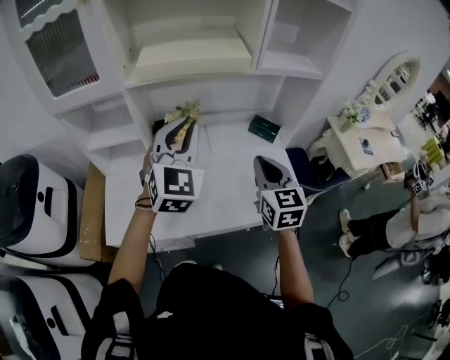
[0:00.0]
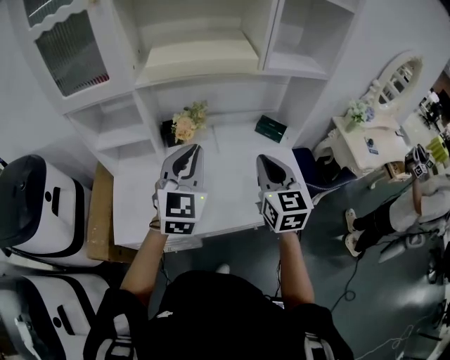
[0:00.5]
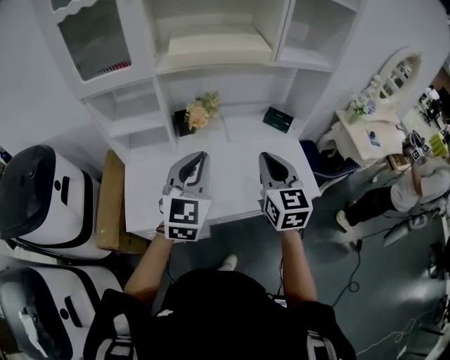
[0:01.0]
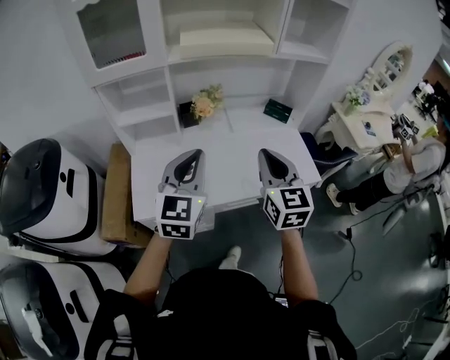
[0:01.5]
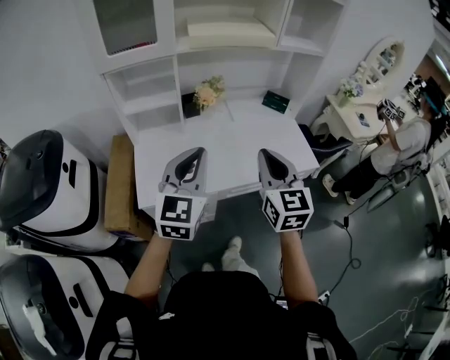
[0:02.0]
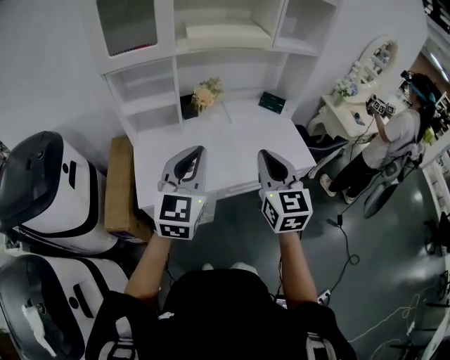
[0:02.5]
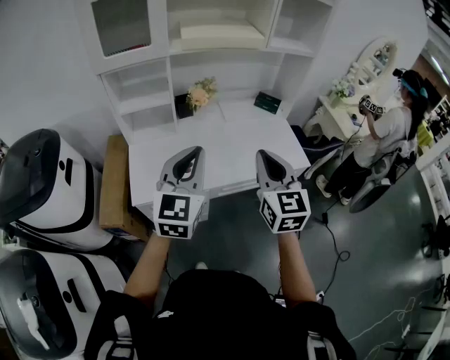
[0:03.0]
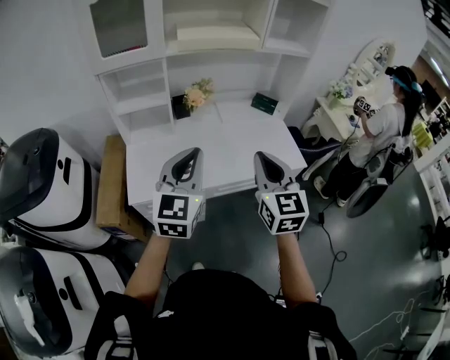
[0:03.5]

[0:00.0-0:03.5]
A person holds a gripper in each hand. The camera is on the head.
0:00.0 to 0:02.0: Both grippers travel together backward and to the left, about 30 cm. The left gripper turns by approximately 20 degrees.
0:02.0 to 0:03.5: The left gripper changes place by approximately 5 cm, while the right gripper moves some 5 cm.

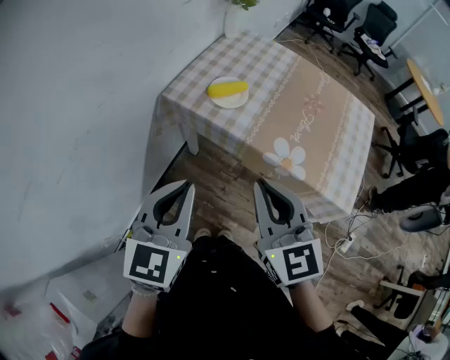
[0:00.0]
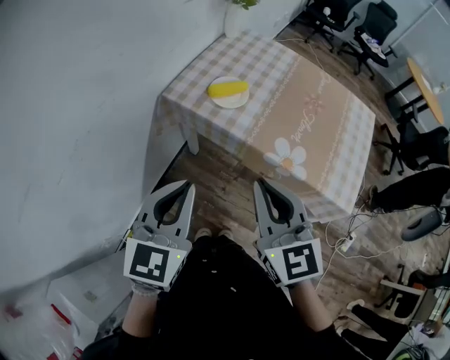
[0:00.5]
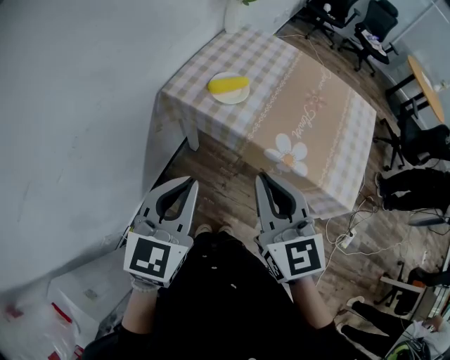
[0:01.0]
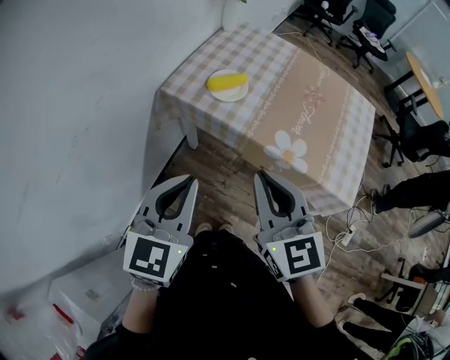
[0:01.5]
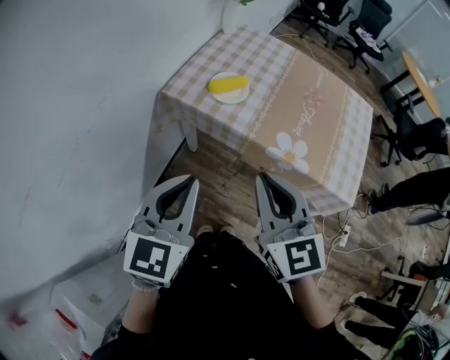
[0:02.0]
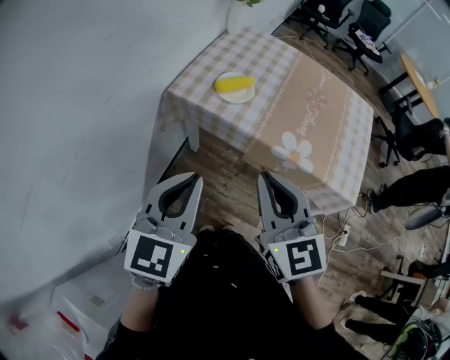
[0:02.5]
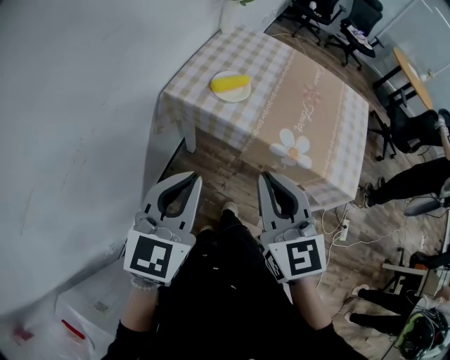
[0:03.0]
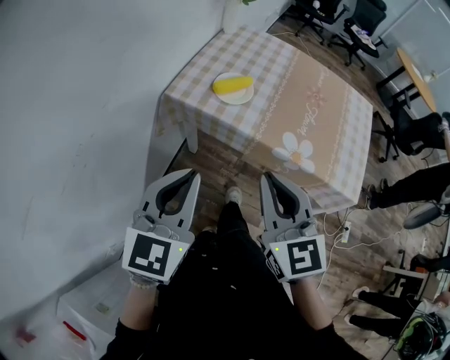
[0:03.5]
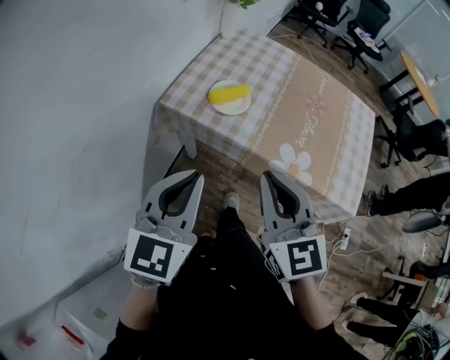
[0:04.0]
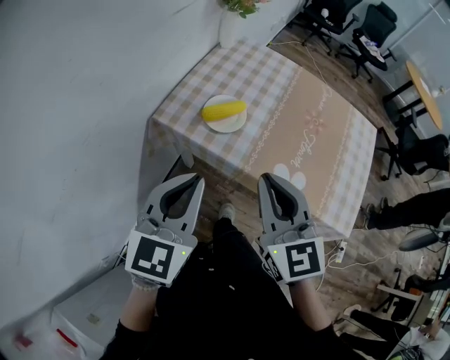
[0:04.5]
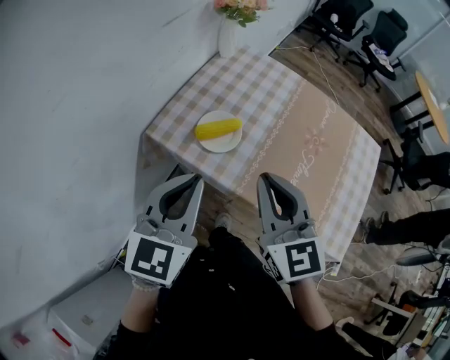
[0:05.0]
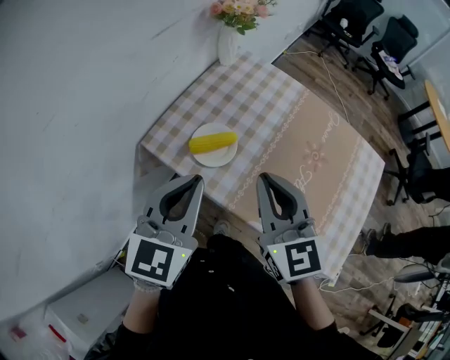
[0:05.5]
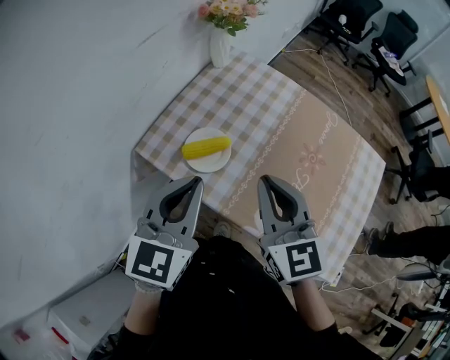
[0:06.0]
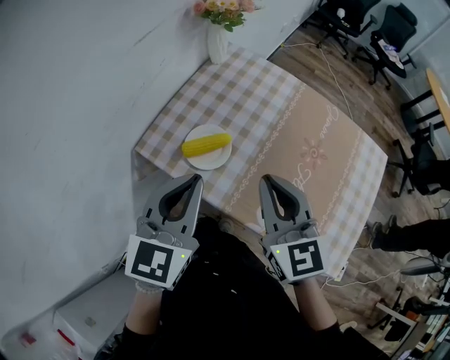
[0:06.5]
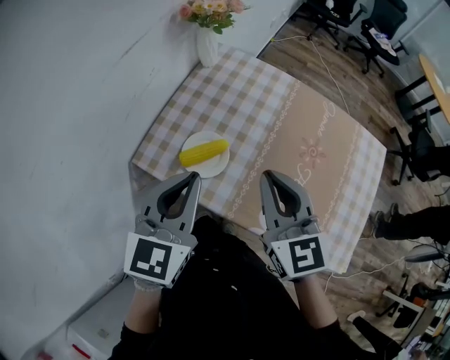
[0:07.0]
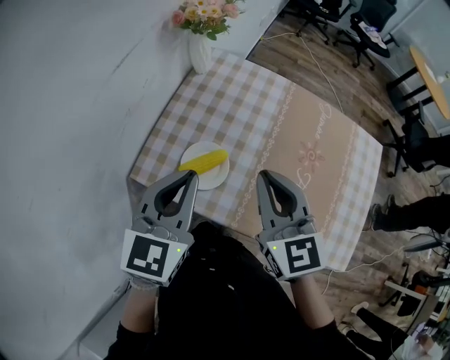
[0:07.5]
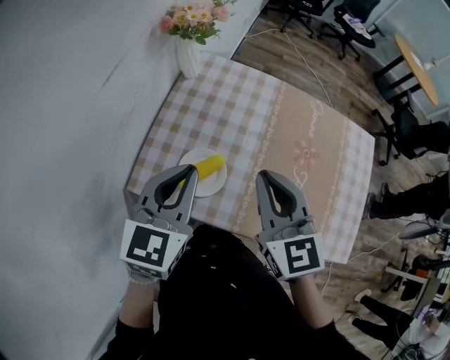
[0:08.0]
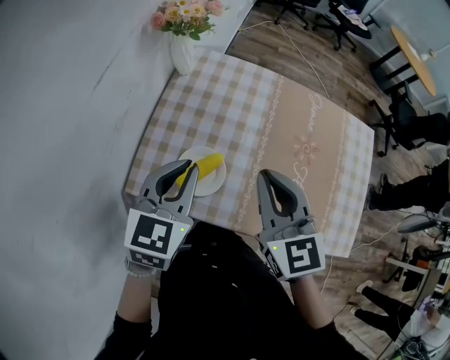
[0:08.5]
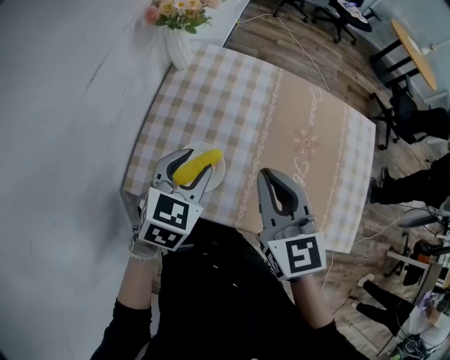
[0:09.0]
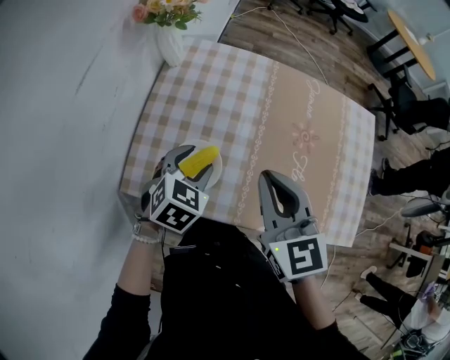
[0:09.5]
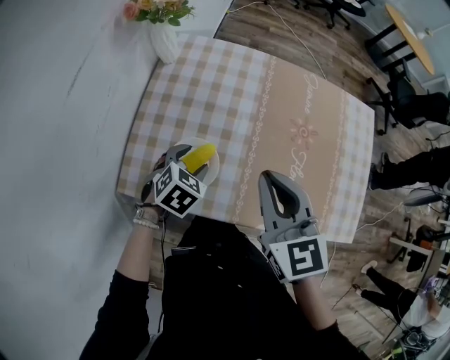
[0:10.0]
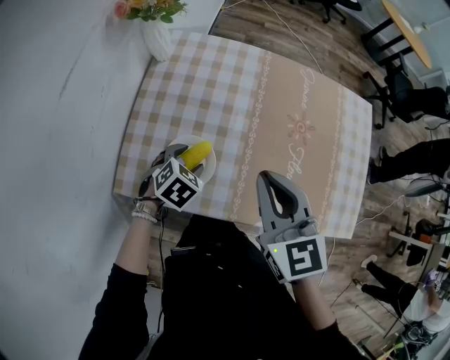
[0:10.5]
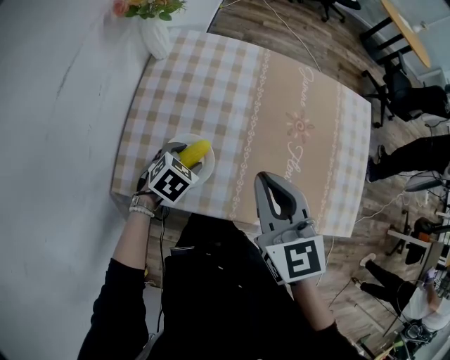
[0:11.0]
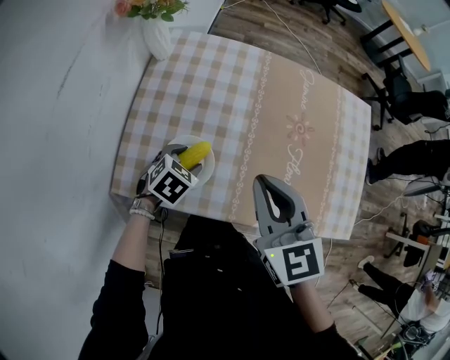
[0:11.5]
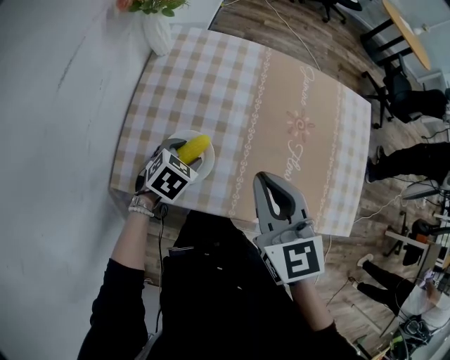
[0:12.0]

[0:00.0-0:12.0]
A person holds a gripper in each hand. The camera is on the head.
0:00.0 to 0:02.0: The grippers make only small movements.
0:02.0 to 0:04.0: Both grippers travel together forward, some 5 cm.
0:04.0 to 0:06.0: Both grippers travel together forward and to the right, roughly 25 cm.
0:06.0 to 0:08.0: The left gripper travels forward by about 10 cm; the right gripper shifts roughly 5 cm forward.
0:08.0 to 0:10.0: The left gripper is displaced downward by some 25 cm, tilts its fingers some 40 degrees downward, and opens up.
0:10.0 to 0:12.0: There are only small adjustments of the grippers.

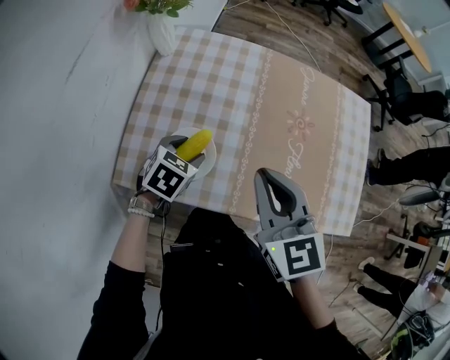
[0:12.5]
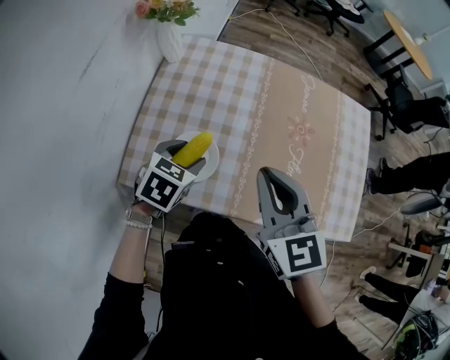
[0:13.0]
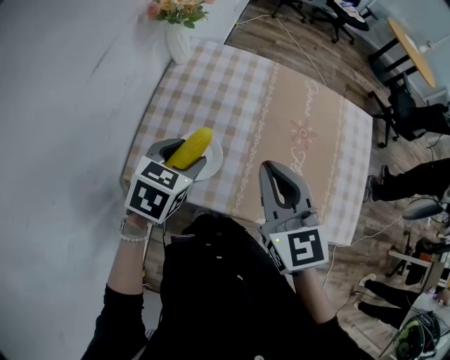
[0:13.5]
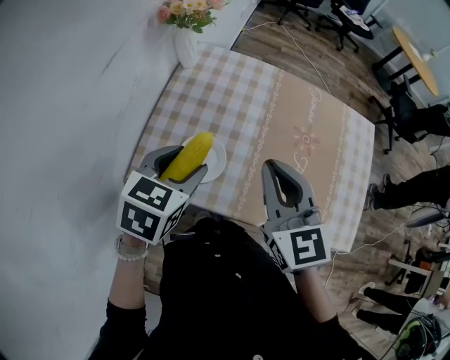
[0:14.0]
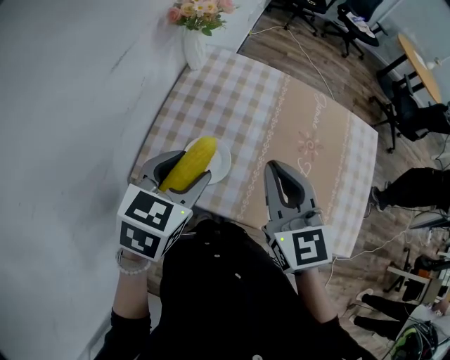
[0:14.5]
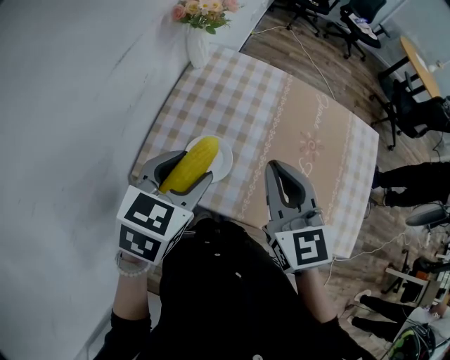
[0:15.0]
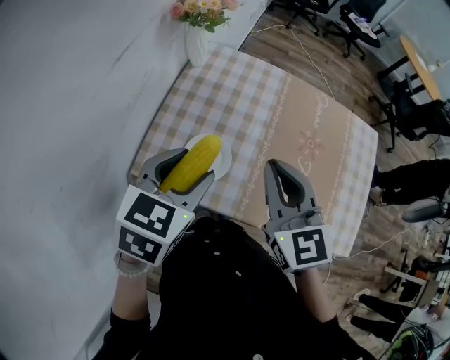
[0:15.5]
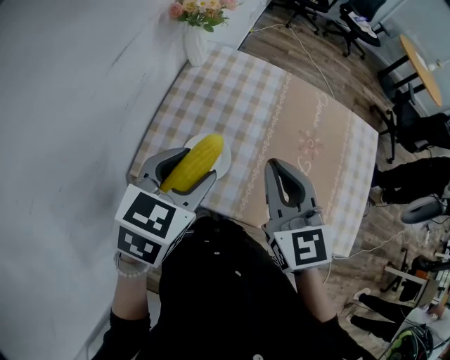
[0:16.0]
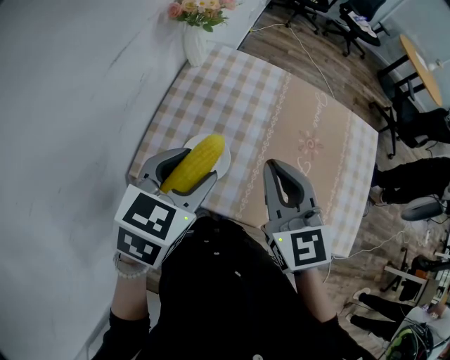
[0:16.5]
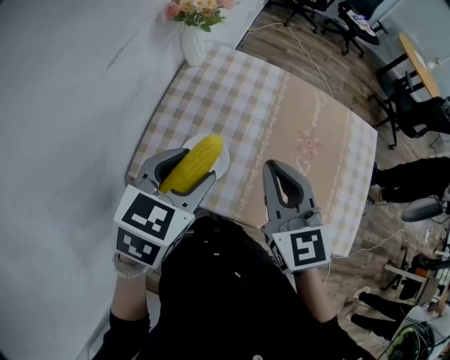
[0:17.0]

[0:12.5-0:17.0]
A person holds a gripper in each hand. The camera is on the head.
0:12.5 to 0:14.5: The left gripper shifts about 20 cm upward, and changes its angle by roughly 20 degrees.
0:14.5 to 0:17.0: The grippers move only a little.

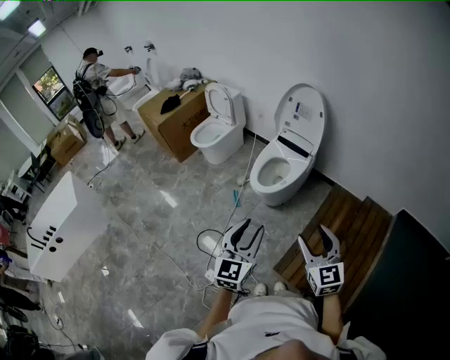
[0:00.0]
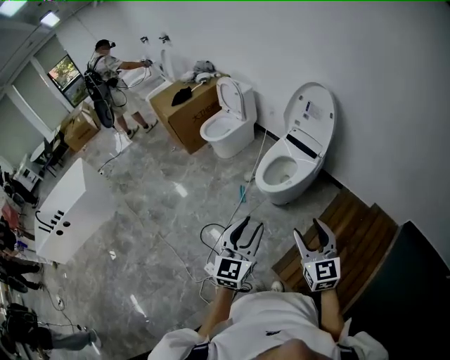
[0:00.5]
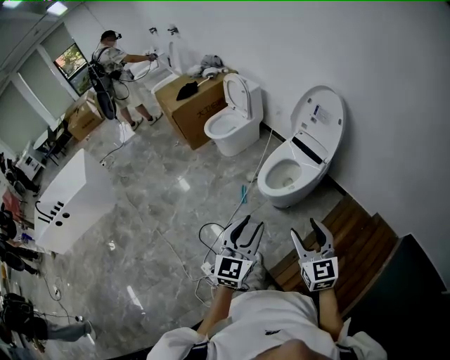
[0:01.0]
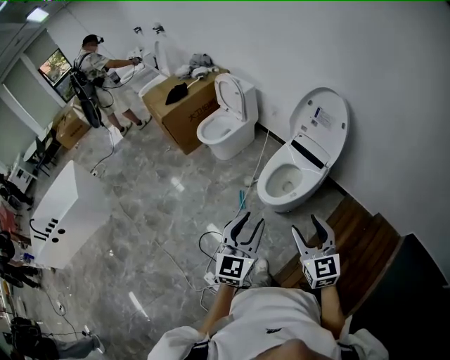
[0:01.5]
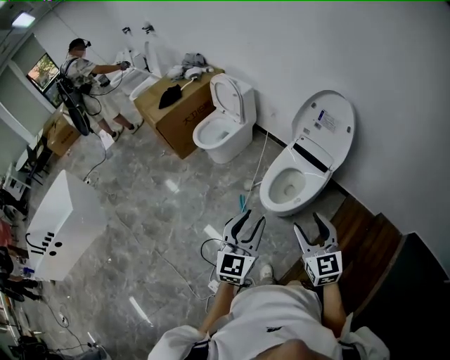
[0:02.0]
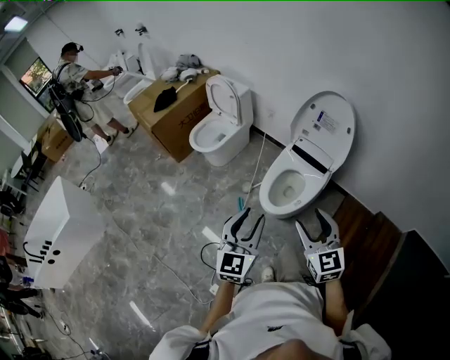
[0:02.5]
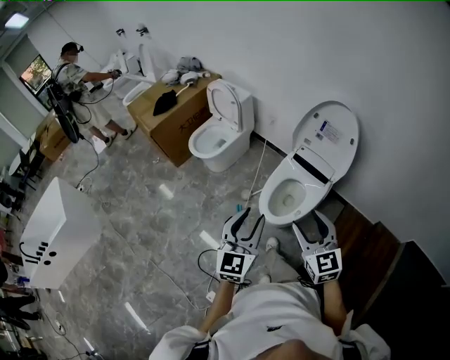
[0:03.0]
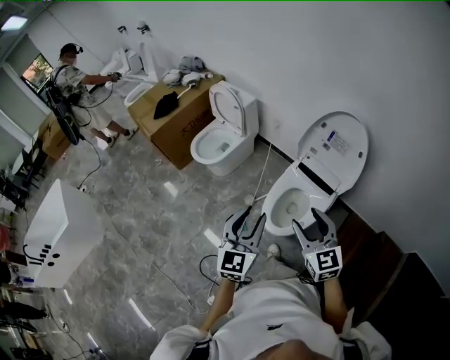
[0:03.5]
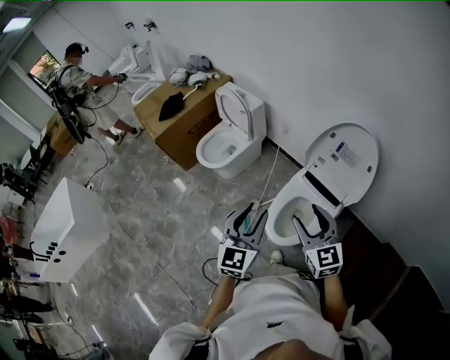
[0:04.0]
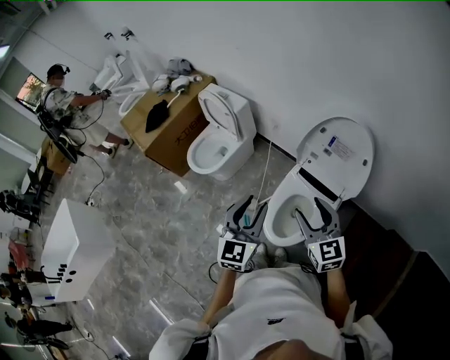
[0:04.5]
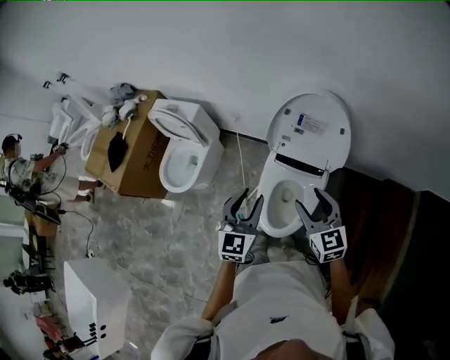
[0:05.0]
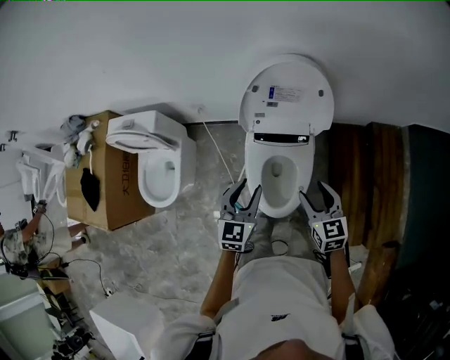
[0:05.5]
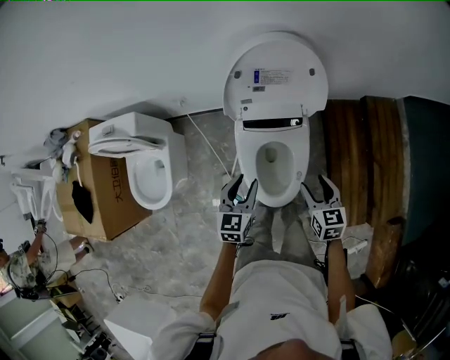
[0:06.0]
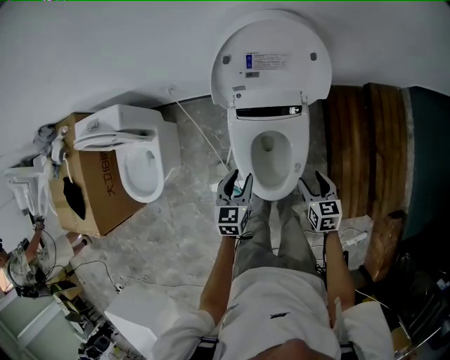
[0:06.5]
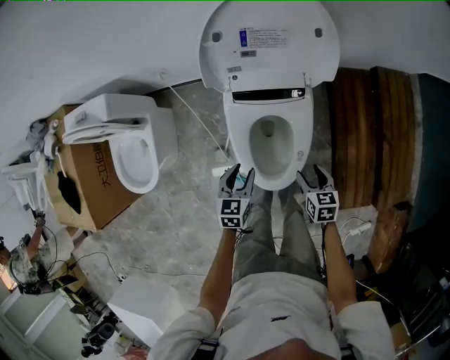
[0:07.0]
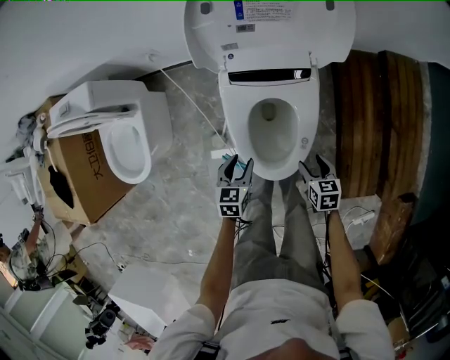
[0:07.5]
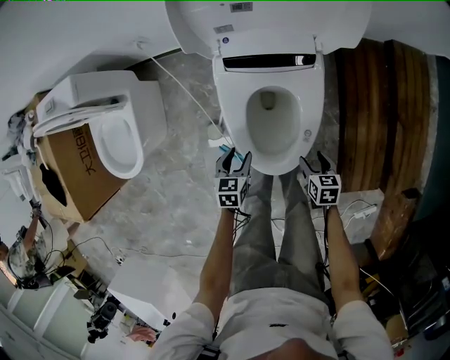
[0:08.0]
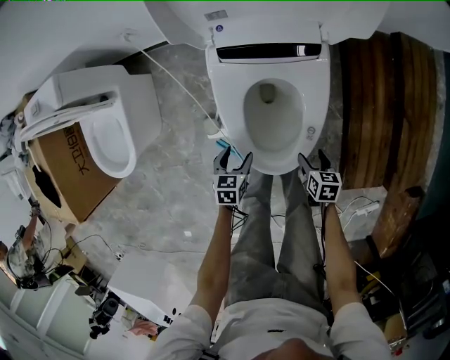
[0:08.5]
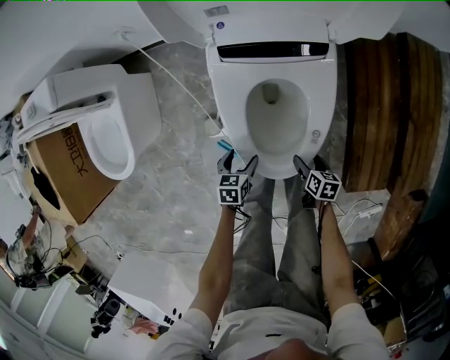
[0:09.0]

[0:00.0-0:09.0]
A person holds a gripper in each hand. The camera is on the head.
0:00.0 to 0:02.0: Both grippers move forward, roughly 30 cm.
0:02.0 to 0:04.5: Both grippers move forward, roughly 35 cm.
0:04.5 to 0:07.0: The two grippers go roughly 40 cm downward. The right gripper points its fingers approximately 40 degrees further downward. The left gripper points its fingers approximately 30 degrees further downward.
0:07.0 to 0:09.0: The grippers both shift downward by about 25 cm. The left gripper rotates some 20 degrees, and opens its fingers. Meanwhile the right gripper swivels roughly 30 degrees.
